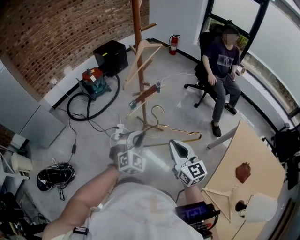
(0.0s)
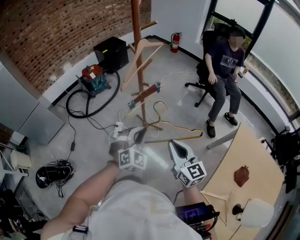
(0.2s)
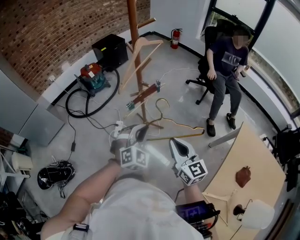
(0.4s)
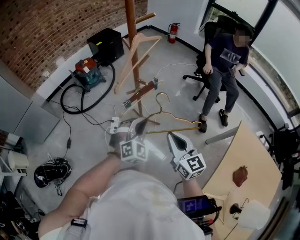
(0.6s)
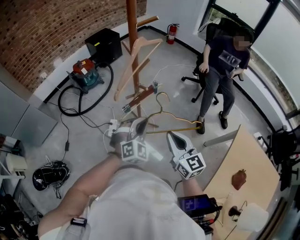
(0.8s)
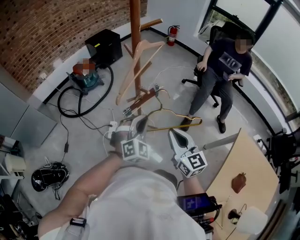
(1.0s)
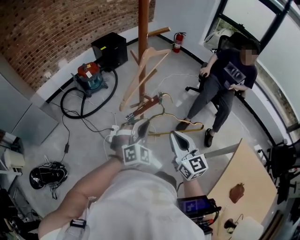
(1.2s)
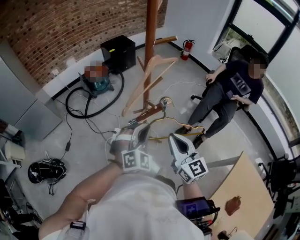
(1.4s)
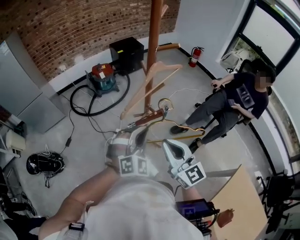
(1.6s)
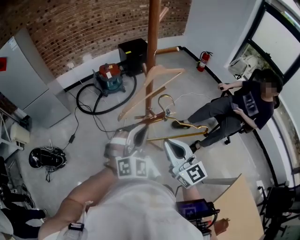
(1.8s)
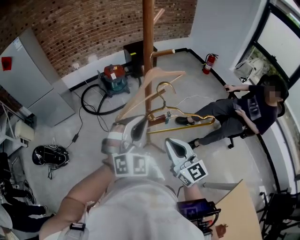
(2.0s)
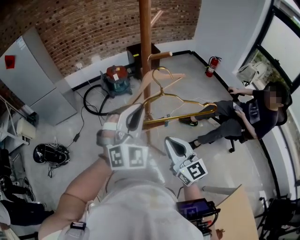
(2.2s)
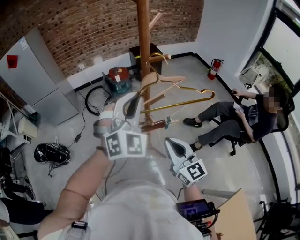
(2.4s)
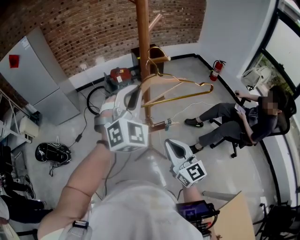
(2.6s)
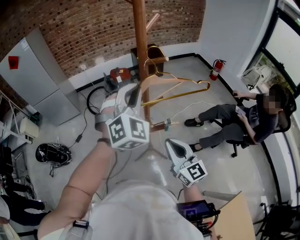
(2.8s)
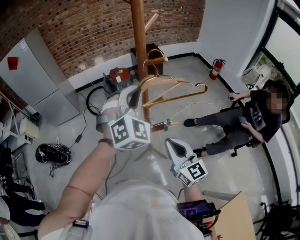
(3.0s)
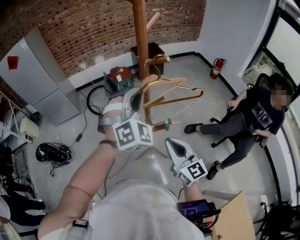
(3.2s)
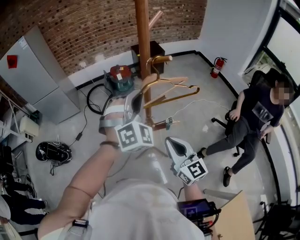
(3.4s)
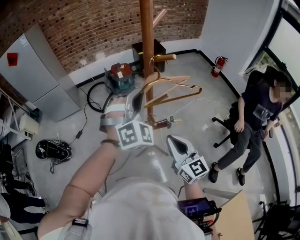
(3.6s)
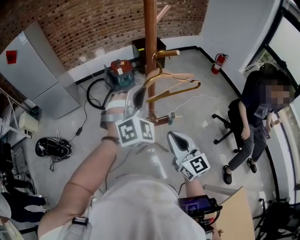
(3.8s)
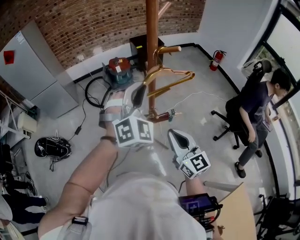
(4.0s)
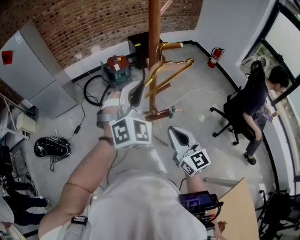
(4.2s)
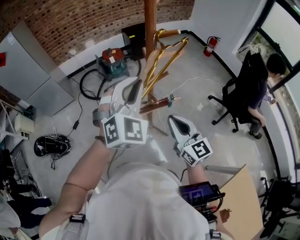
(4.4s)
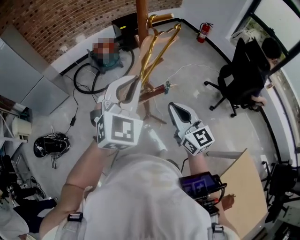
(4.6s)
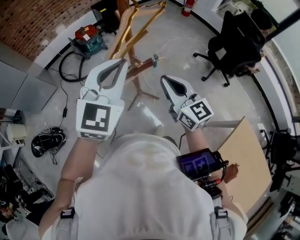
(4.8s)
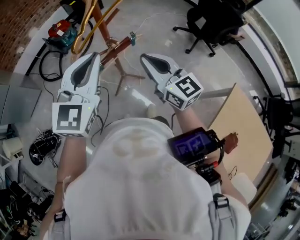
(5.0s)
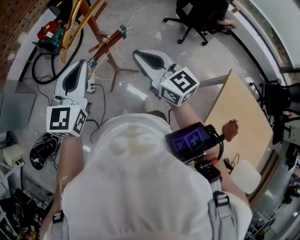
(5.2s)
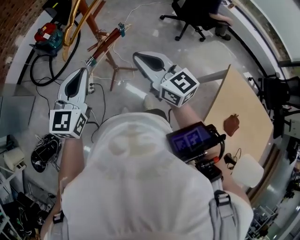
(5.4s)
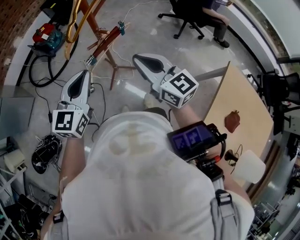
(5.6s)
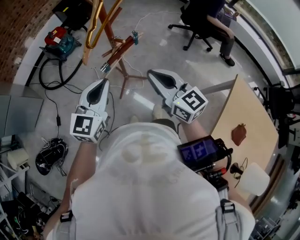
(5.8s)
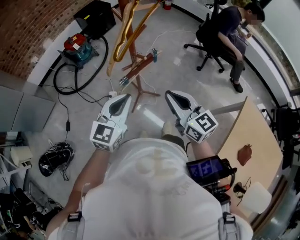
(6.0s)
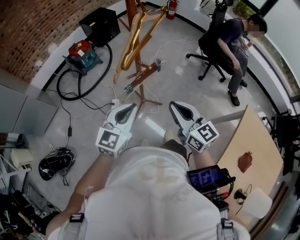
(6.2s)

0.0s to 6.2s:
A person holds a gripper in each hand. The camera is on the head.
0.0s to 1.6s: Both grippers travel together forward, roughly 20 cm. The right gripper swivels about 20 degrees.
1.6s to 3.2s: The right gripper travels to the right and forward by some 10 cm; the left gripper heads upward and forward, covering some 20 cm, and turns by some 20 degrees.
3.2s to 4.6s: The left gripper moves backward and to the left, some 10 cm, and changes its angle by roughly 30 degrees.
4.6s to 6.2s: The left gripper heads downward and backward, covering about 20 cm, and turns by approximately 40 degrees. The right gripper shifts approximately 10 cm backward.

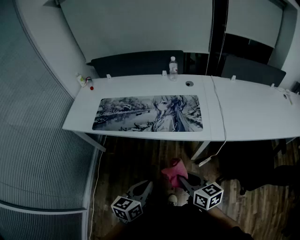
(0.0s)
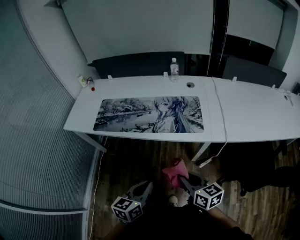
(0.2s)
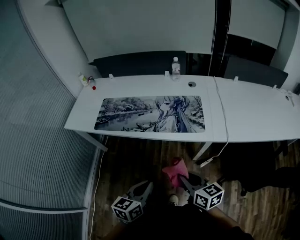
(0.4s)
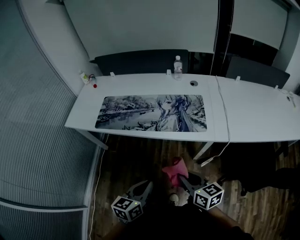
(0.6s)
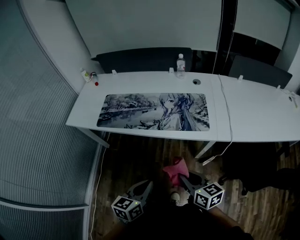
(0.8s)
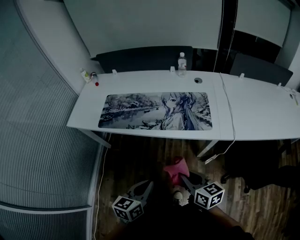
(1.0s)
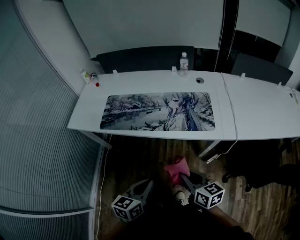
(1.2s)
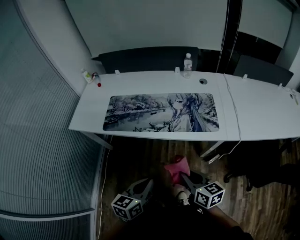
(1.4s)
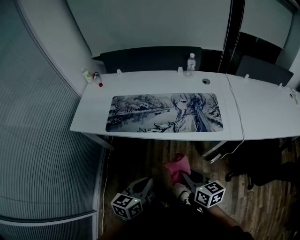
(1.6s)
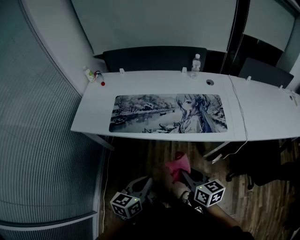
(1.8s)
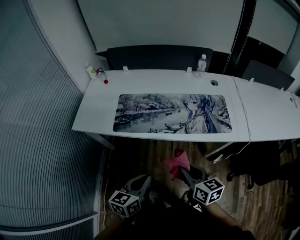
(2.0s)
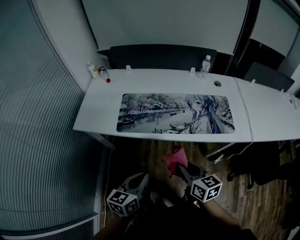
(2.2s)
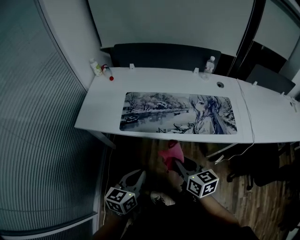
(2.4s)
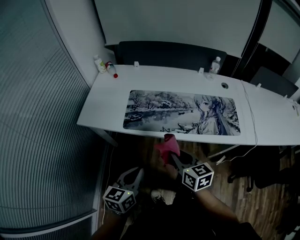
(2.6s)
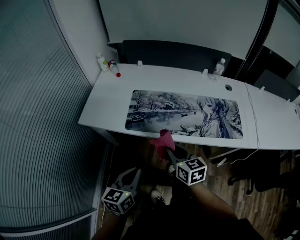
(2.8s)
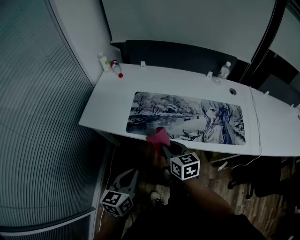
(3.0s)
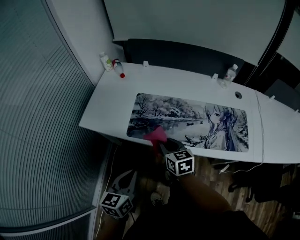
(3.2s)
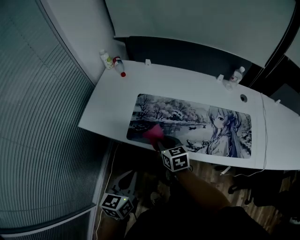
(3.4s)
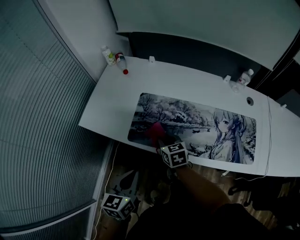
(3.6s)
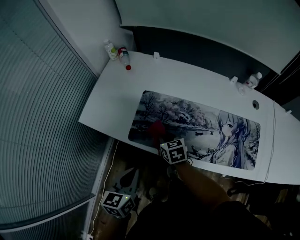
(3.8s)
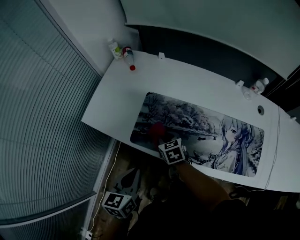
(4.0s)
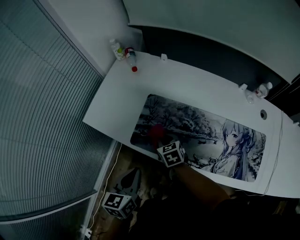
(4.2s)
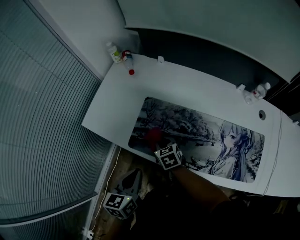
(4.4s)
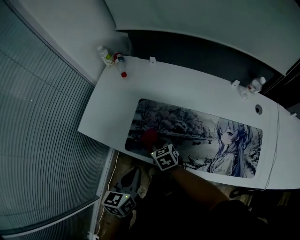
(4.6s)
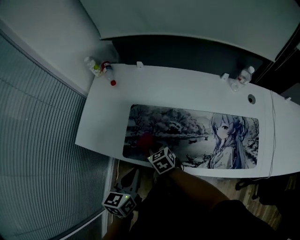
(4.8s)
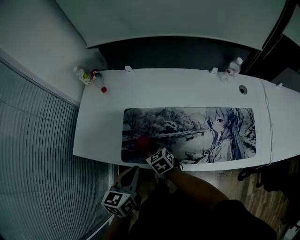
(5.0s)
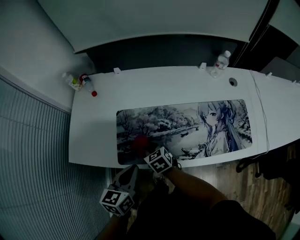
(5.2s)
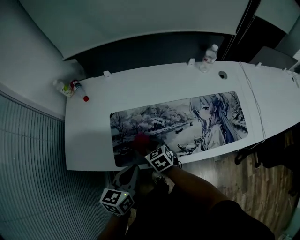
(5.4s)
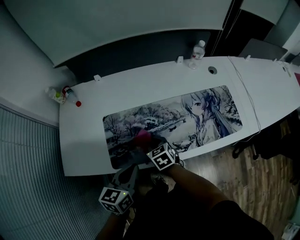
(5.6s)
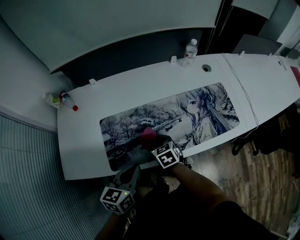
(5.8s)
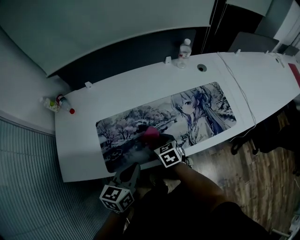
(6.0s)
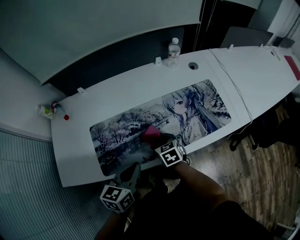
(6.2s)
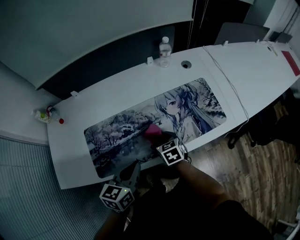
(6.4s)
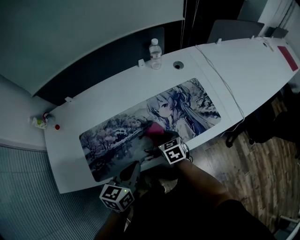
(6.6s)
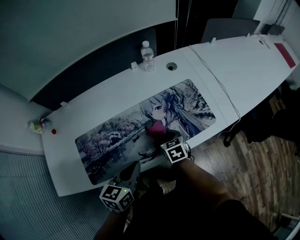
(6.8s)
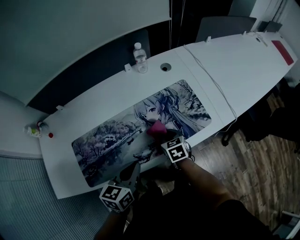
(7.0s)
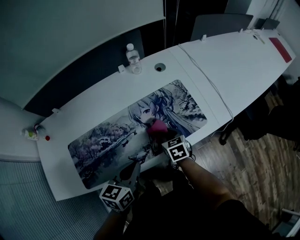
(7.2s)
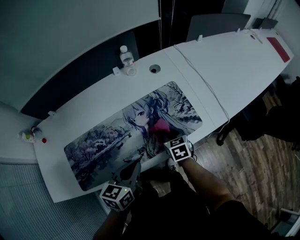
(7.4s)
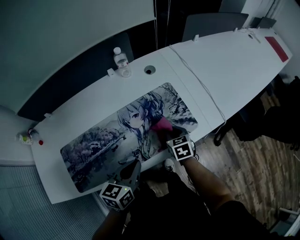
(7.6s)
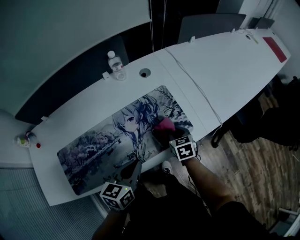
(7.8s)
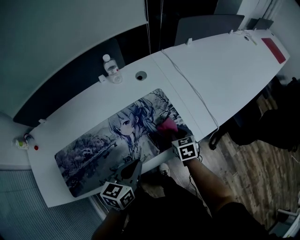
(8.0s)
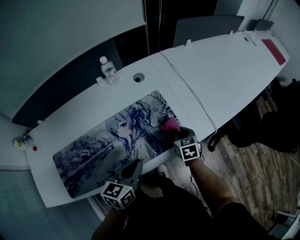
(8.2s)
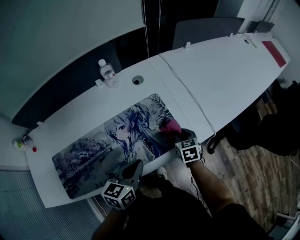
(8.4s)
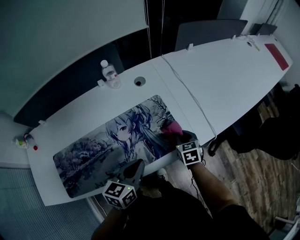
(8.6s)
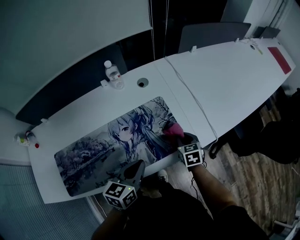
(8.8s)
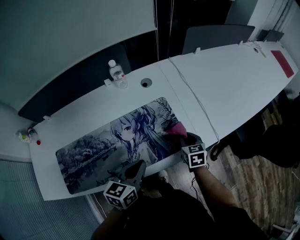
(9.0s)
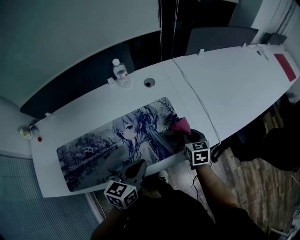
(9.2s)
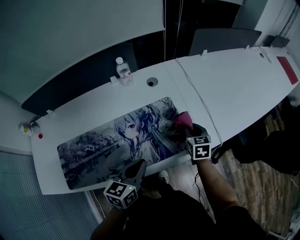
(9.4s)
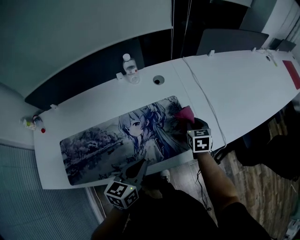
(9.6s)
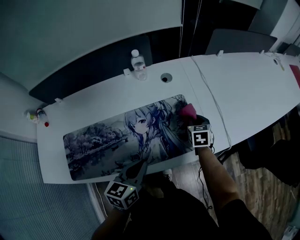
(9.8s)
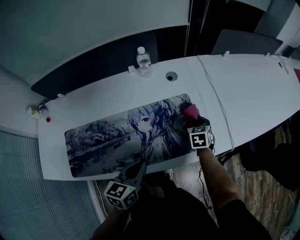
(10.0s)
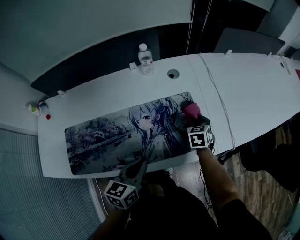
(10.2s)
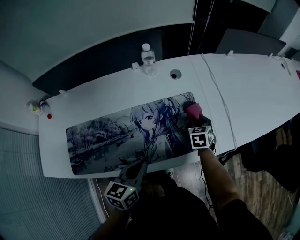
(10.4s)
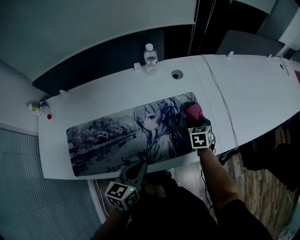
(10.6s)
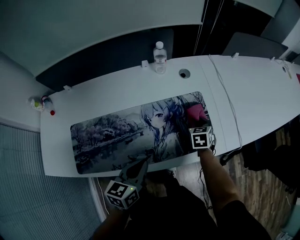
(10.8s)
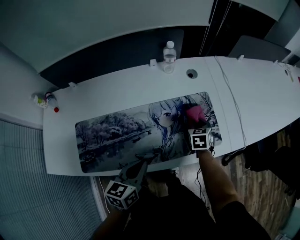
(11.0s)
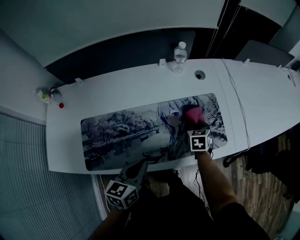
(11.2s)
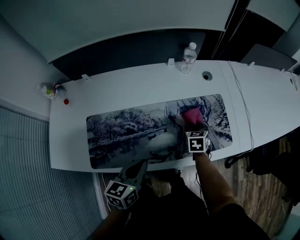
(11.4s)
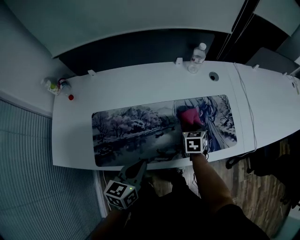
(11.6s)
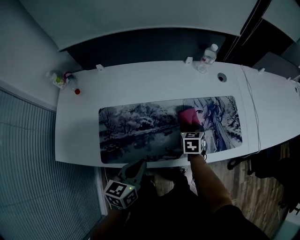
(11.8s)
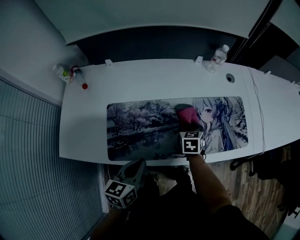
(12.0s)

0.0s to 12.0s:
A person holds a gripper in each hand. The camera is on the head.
0.0s to 1.6s: The right gripper is displaced to the left and forward by roughly 15 cm. The left gripper heads to the left, covering some 15 cm.
1.6s to 3.0s: The grippers both shift to the left and forward by roughly 30 cm.
3.0s to 4.4s: The right gripper goes approximately 20 cm forward and downward, and turns by about 30 degrees. The left gripper is displaced forward by roughly 15 cm.
4.4s to 6.0s: The left gripper shifts by roughly 10 cm, and changes its angle by some 40 degrees. Meanwhile the right gripper changes place by about 15 cm, and changes its angle by approximately 40 degrees.
6.0s to 7.6s: The left gripper moves to the right and forward, approximately 25 cm. Meanwhile the right gripper travels to the right by about 30 cm.
7.6s to 9.0s: The two grippers go roughly 10 cm to the right and forward.
9.0s to 10.4s: The right gripper goes about 10 cm forward and to the left. Meanwhile the left gripper moves to the left, about 5 cm.
10.4s to 12.0s: Both grippers move to the left and backward, about 30 cm.

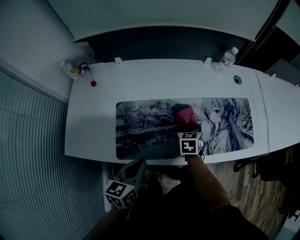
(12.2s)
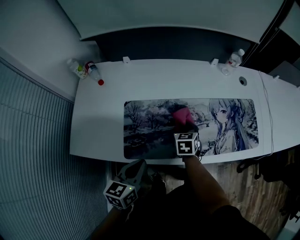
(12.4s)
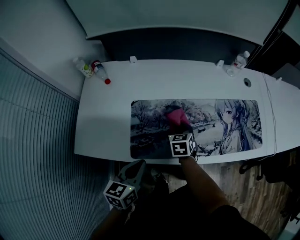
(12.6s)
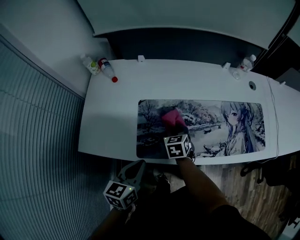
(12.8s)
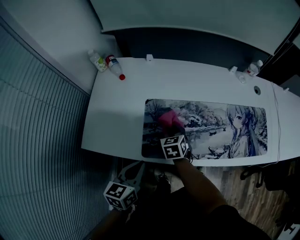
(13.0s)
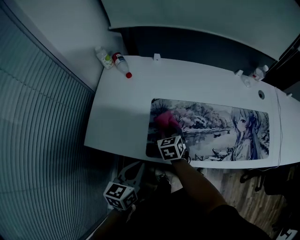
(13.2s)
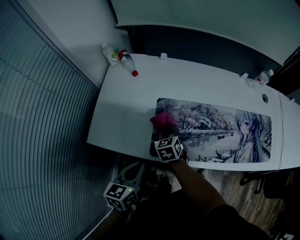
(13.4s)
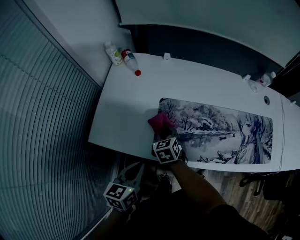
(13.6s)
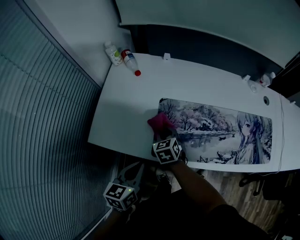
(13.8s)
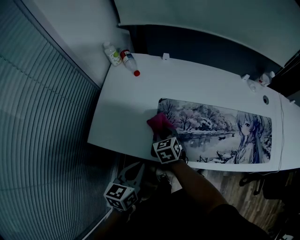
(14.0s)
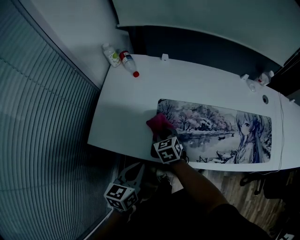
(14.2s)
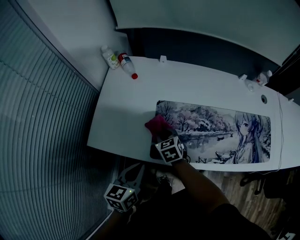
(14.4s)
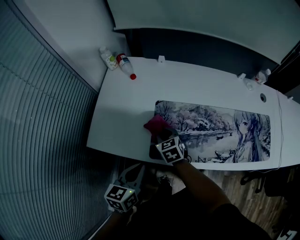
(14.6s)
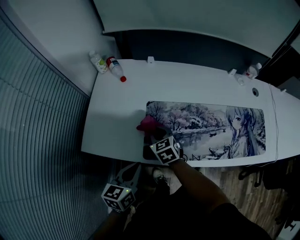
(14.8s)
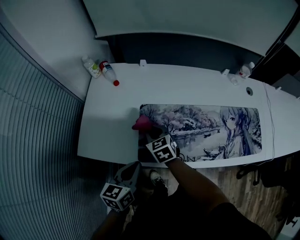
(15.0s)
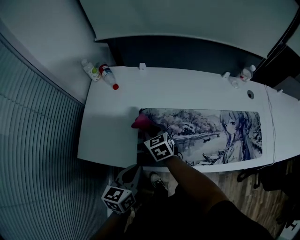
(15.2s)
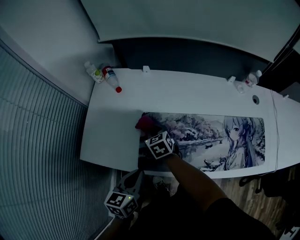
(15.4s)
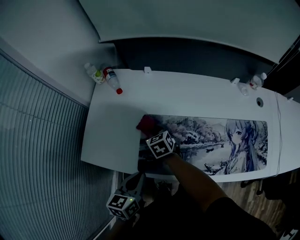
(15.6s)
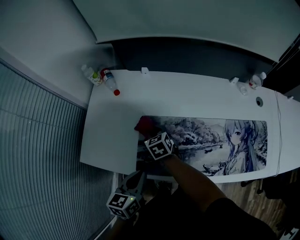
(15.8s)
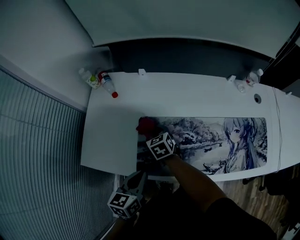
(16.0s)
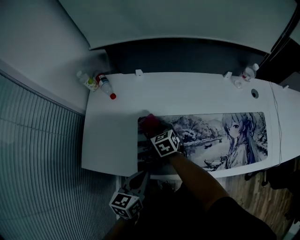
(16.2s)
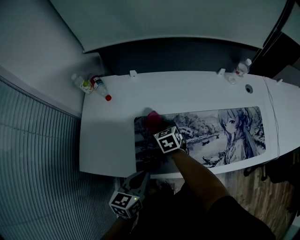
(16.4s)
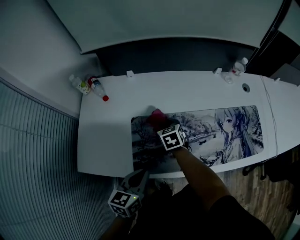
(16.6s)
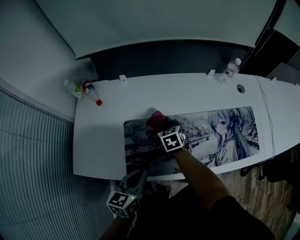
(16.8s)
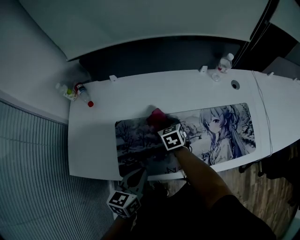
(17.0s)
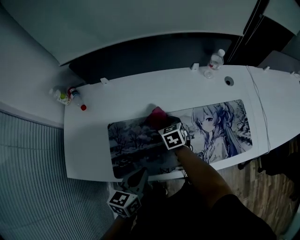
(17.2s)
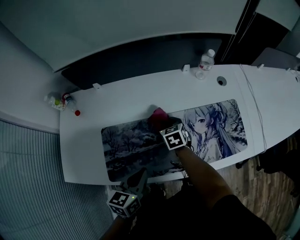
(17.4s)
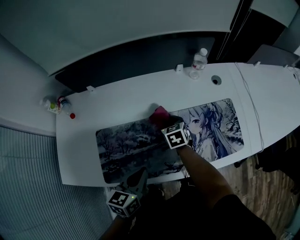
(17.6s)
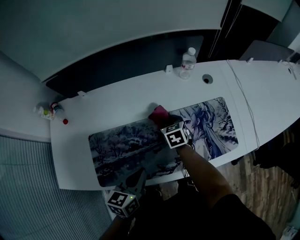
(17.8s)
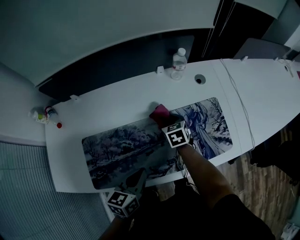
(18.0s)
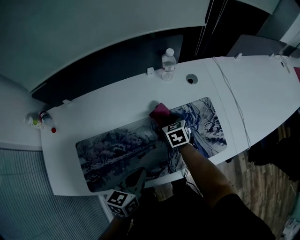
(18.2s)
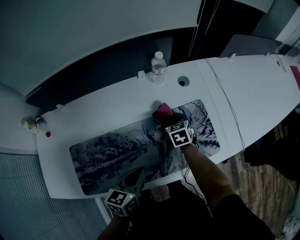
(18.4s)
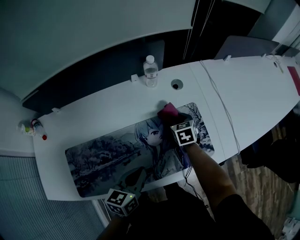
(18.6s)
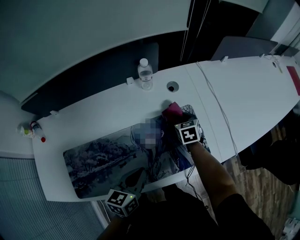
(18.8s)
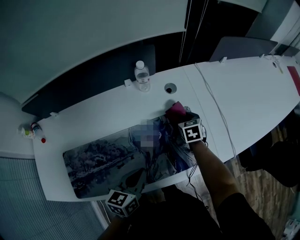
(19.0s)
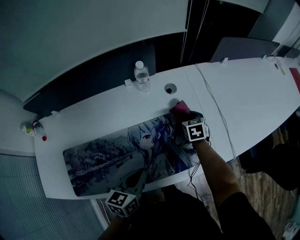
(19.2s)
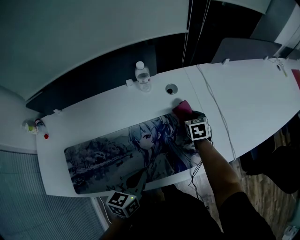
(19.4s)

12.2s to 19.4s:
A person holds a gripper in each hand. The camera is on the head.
12.2s to 13.6s: The right gripper is displaced to the left by about 30 cm, and turns by some 30 degrees. Meanwhile the left gripper goes approximately 15 cm to the left.
13.6s to 15.0s: The right gripper moves about 5 cm.
15.0s to 16.6s: The left gripper shifts roughly 5 cm to the right. The right gripper moves to the right and forward, roughly 15 cm.
16.6s to 18.0s: Both grippers travel together to the right, approximately 25 cm.
18.0s to 19.4s: The right gripper goes approximately 30 cm to the right and forward. The left gripper moves to the right and forward, roughly 15 cm.
